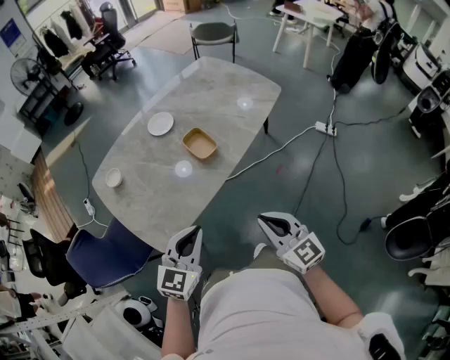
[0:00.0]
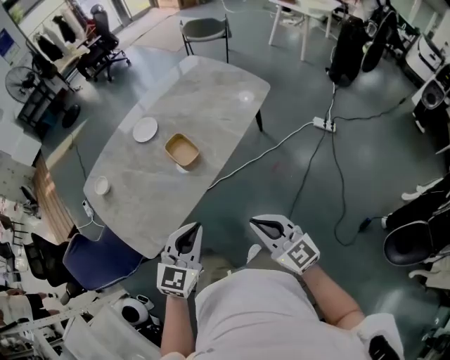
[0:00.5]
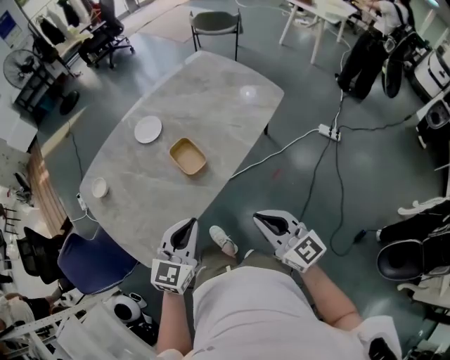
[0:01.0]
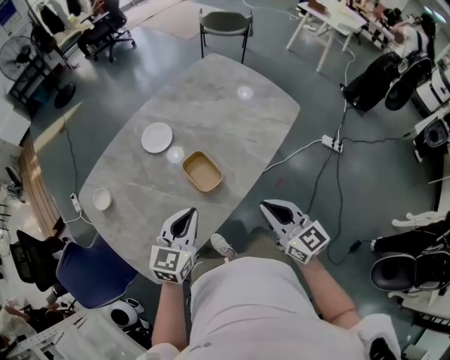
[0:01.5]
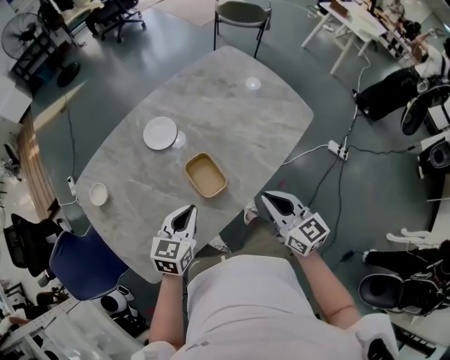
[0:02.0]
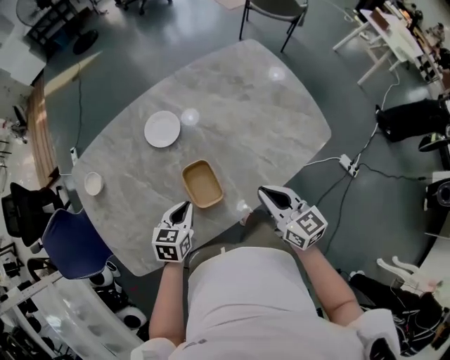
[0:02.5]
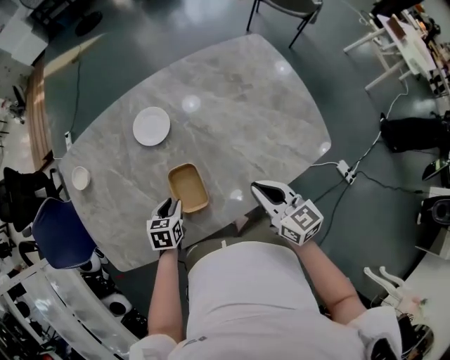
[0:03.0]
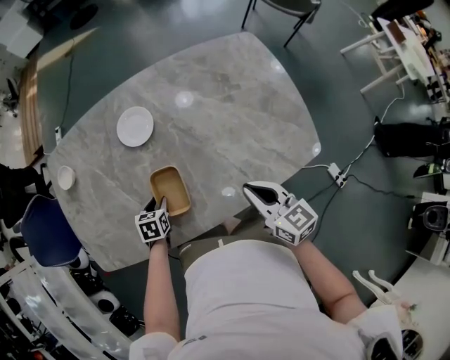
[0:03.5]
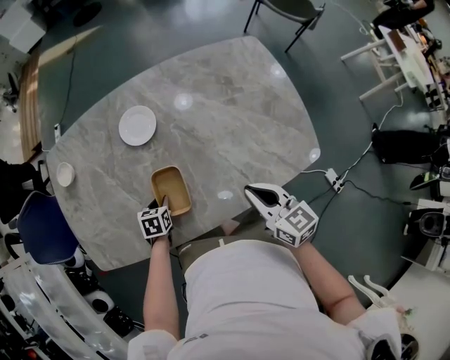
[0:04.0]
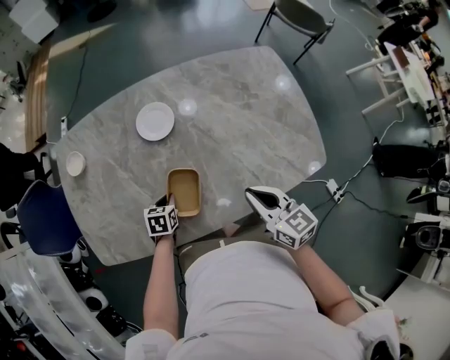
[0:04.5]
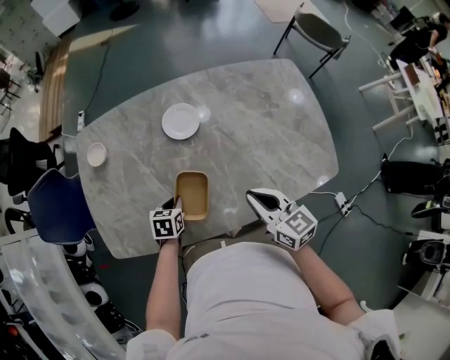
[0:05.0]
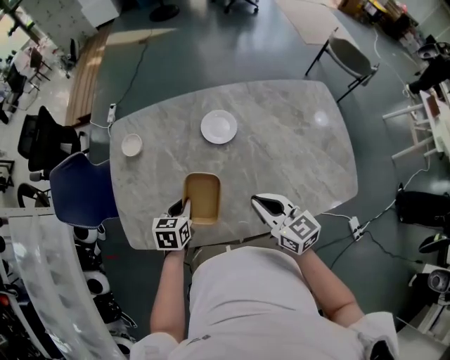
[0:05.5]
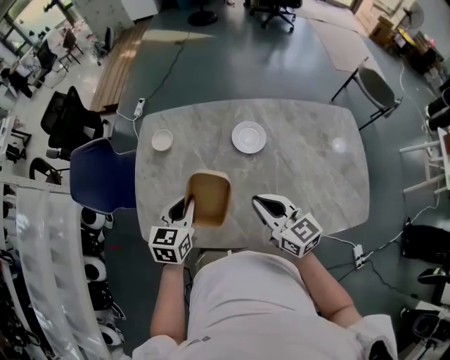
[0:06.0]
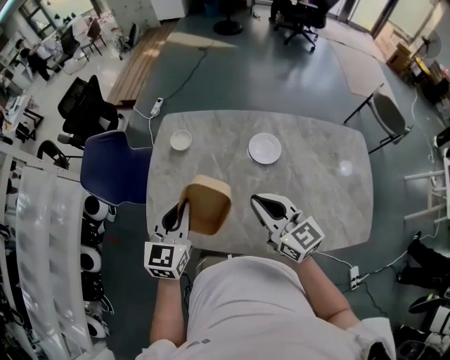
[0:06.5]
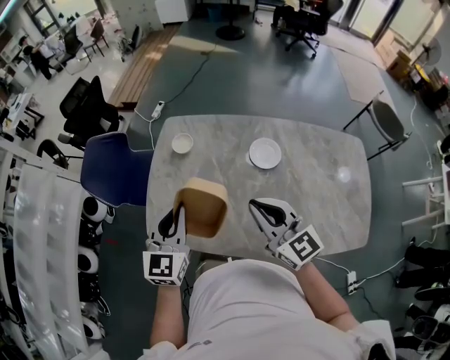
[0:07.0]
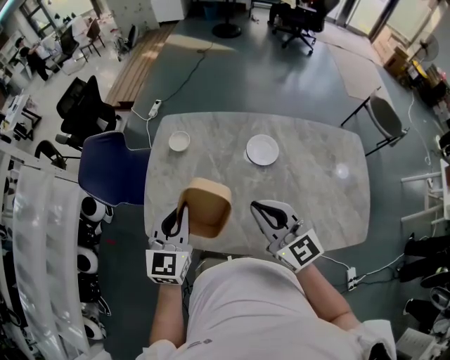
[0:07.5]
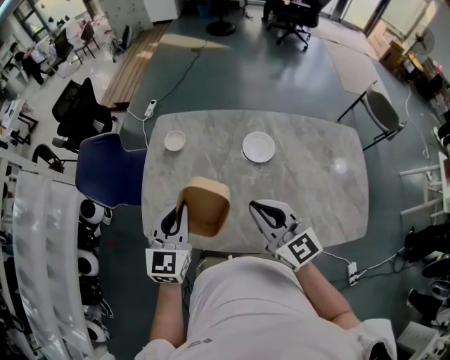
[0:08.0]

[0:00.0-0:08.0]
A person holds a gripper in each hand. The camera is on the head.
0.0 to 2.0 s: The two grippers go about 30 cm forward. The left gripper changes its angle by about 20 degrees.
2.0 to 4.0 s: The left gripper heads downward, covering roughly 25 cm, angles its fingers downward, by roughly 30 degrees, and opens its fingers. The right gripper moves roughly 20 cm, and changes its angle by roughly 30 degrees.
4.0 to 6.0 s: The left gripper goes about 30 cm upward and to the left, and tips its fingers upward by approximately 30 degrees. The right gripper heads to the left, covering roughly 25 cm, and swivels about 20 degrees.
6.0 to 8.0 s: Both grippers move upward and to the left, roughly 10 cm. The left gripper swivels approximately 20 degrees.

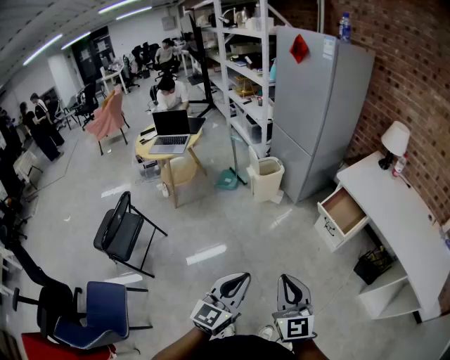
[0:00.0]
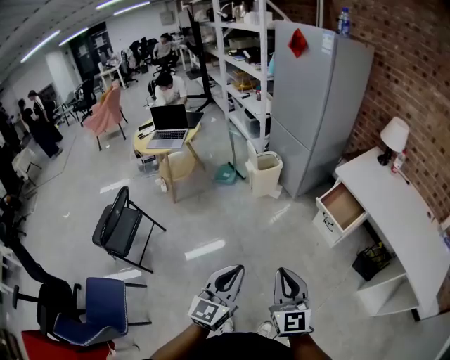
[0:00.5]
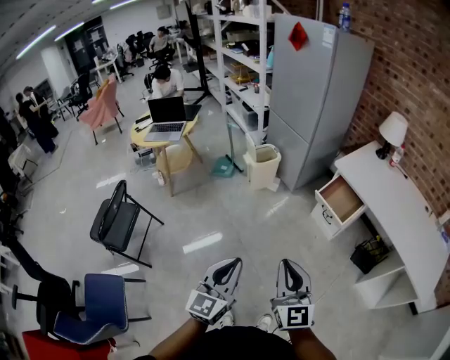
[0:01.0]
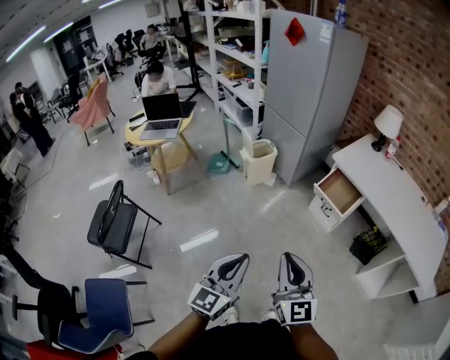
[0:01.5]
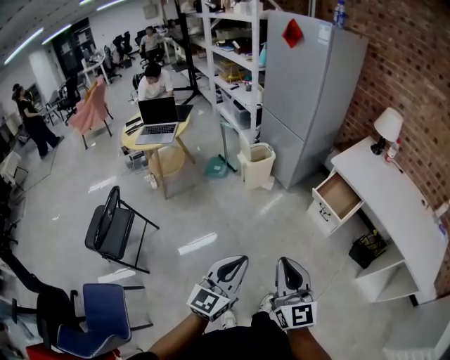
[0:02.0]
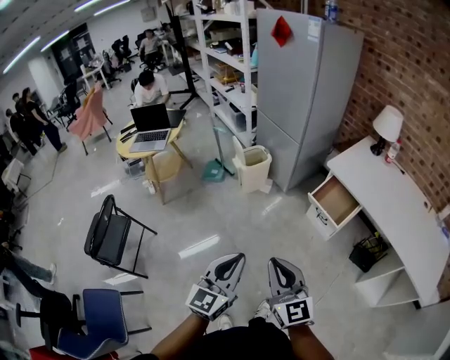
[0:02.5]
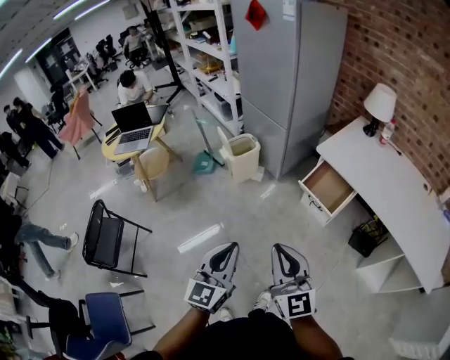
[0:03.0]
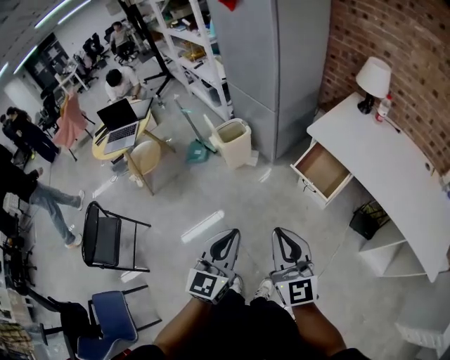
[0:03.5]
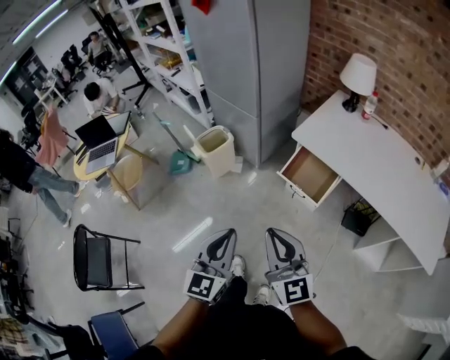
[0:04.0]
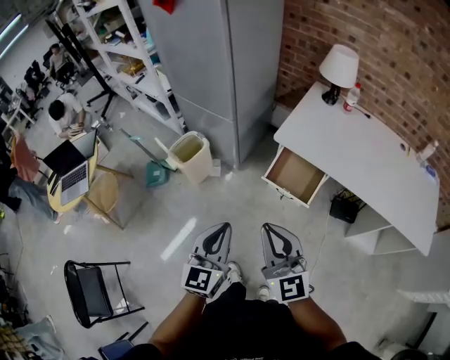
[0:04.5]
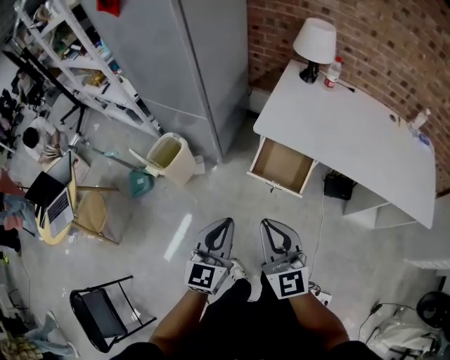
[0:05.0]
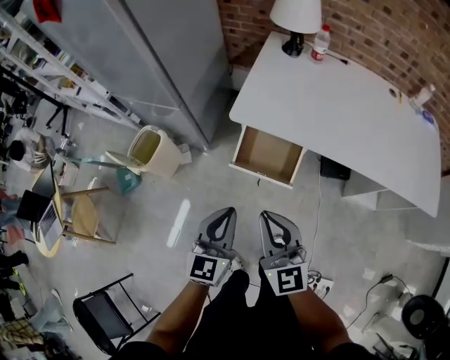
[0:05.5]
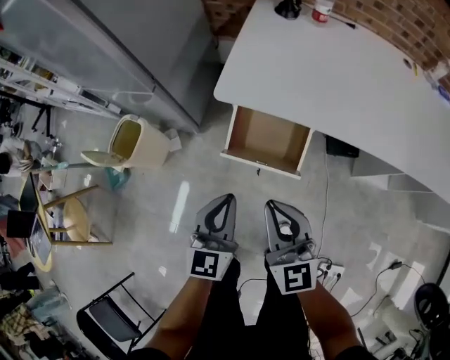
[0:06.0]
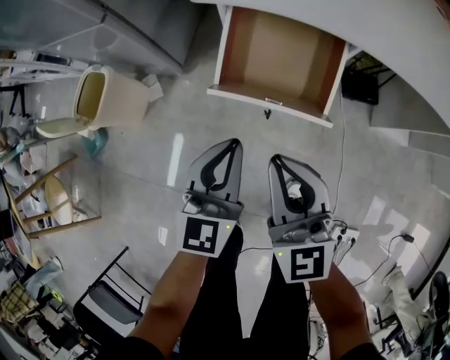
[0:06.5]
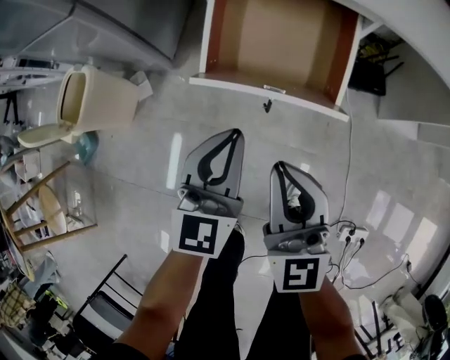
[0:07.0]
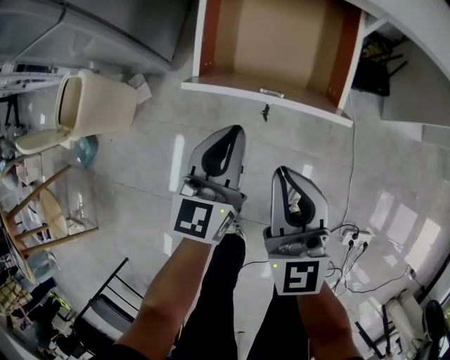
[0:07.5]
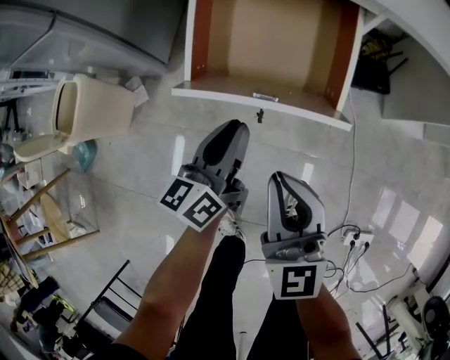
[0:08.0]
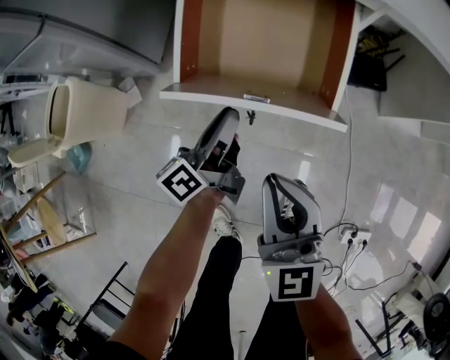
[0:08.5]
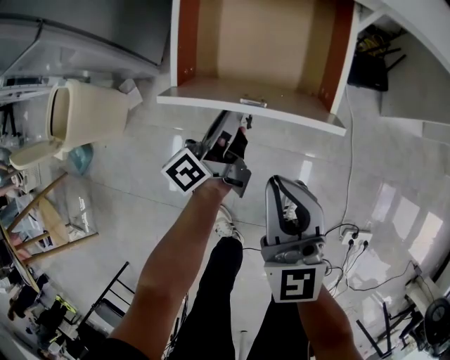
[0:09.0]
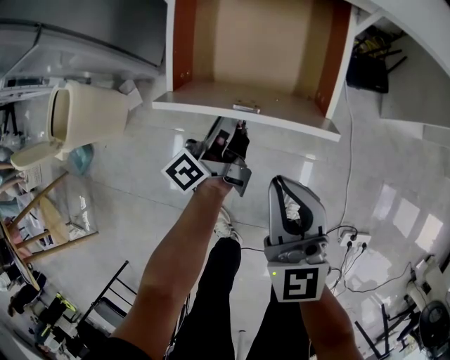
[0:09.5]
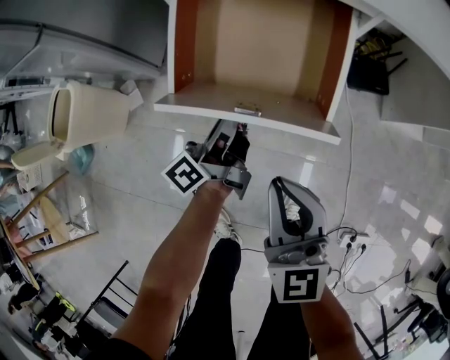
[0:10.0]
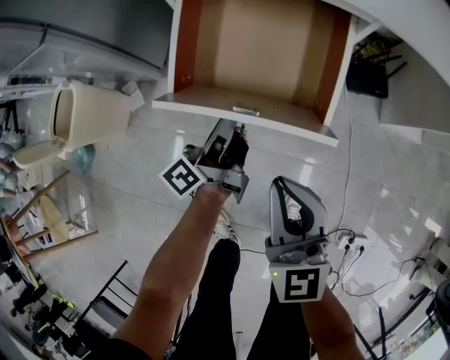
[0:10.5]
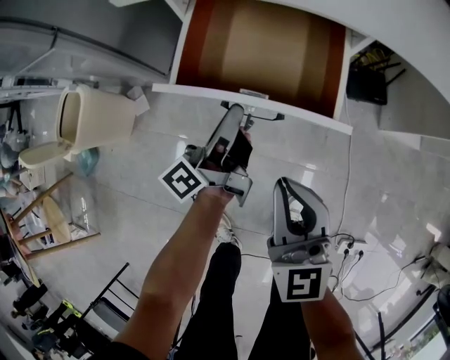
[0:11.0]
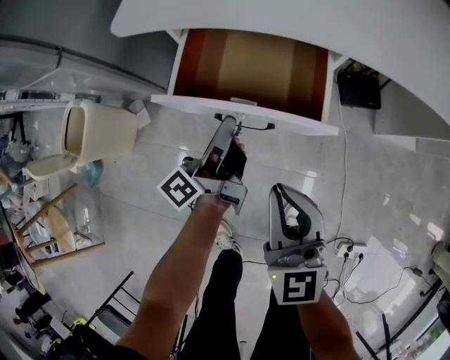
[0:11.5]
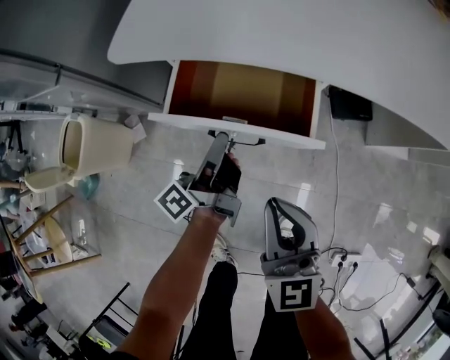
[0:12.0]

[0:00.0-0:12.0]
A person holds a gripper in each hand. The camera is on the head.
0.0 to 2.0 s: The left gripper shifts by approximately 5 cm.
2.0 to 4.0 s: The grippers both shift forward and to the right by about 25 cm.
4.0 to 6.0 s: Both grippers move forward and downward, some 35 cm. The left gripper swivels about 30 degrees. Meanwhile the right gripper swivels some 30 degrees.
6.0 to 8.0 s: Both grippers travel together downward, some 25 cm. The left gripper rotates approximately 40 degrees.
8.0 to 10.0 s: The left gripper is displaced forward by approximately 5 cm, and swivels some 40 degrees.
10.0 to 12.0 s: The left gripper heads upward, covering about 5 cm; the right gripper ends up about 5 cm from where it was.

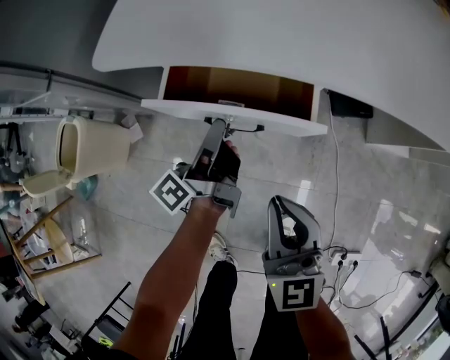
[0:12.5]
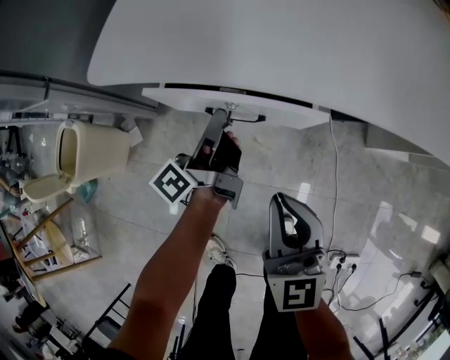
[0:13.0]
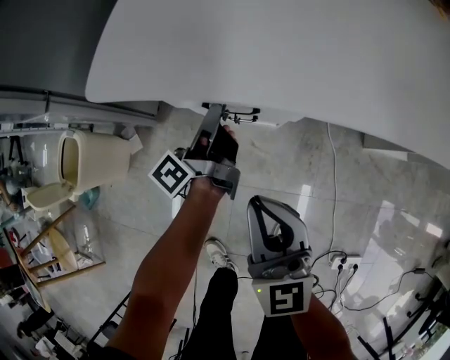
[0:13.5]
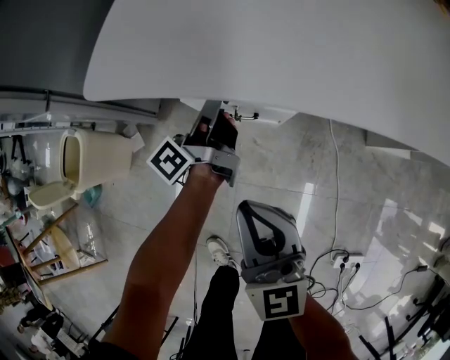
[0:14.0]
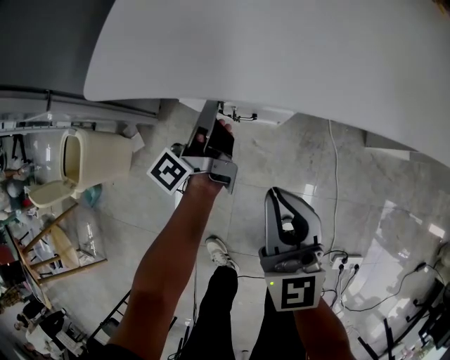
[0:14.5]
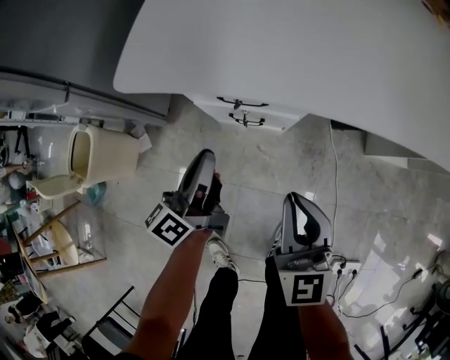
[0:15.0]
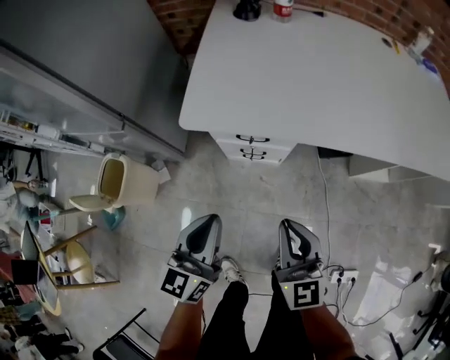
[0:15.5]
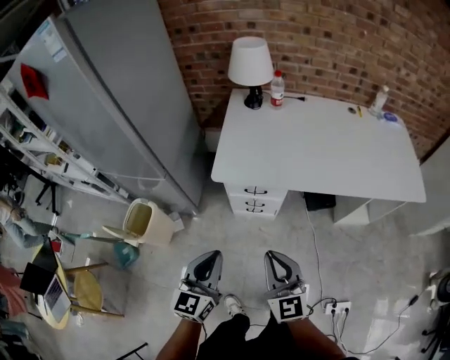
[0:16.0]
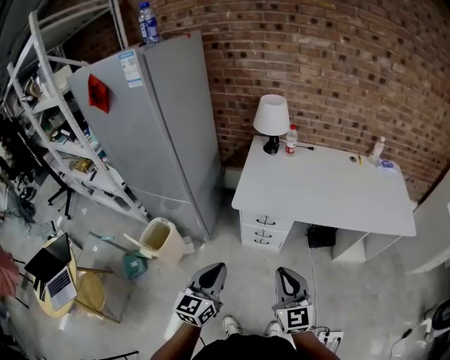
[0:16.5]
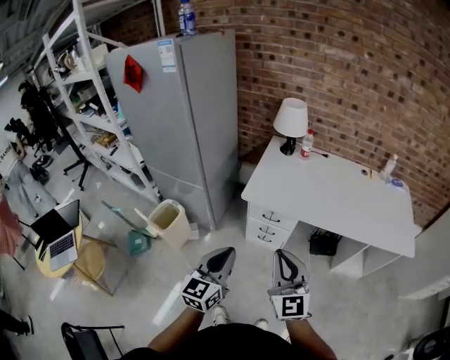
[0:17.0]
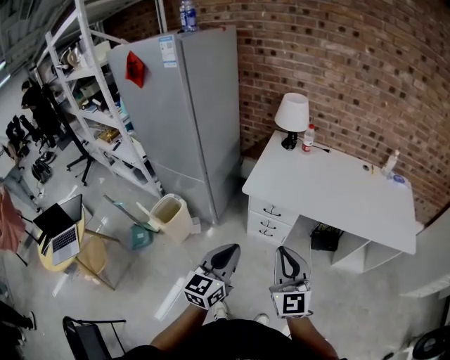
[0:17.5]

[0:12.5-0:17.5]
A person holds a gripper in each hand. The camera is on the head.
12.5 to 15.0 s: The right gripper shifts by approximately 5 cm; the left gripper shifts roughly 5 cm upward, moves some 10 cm forward and comes back, and rotates some 30 degrees.
15.0 to 17.5 s: Both grippers move upward and backward, about 50 cm. The right gripper swivels about 20 degrees. Meanwhile the left gripper twists some 40 degrees clockwise, seen from behind.

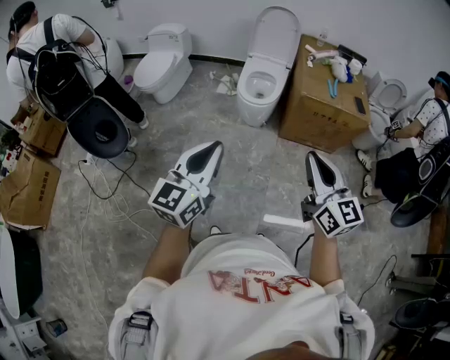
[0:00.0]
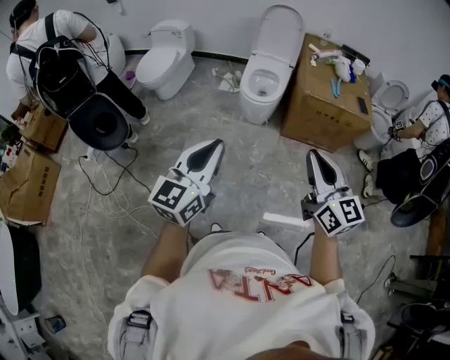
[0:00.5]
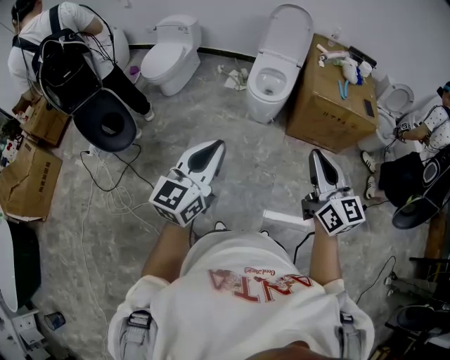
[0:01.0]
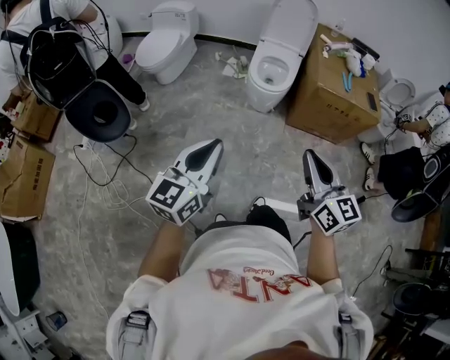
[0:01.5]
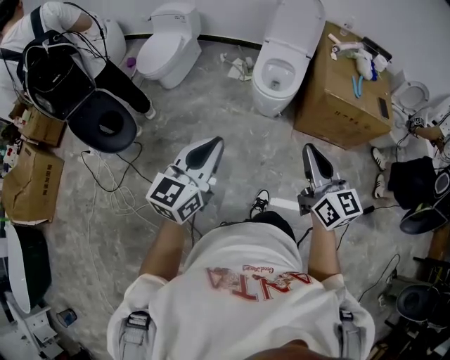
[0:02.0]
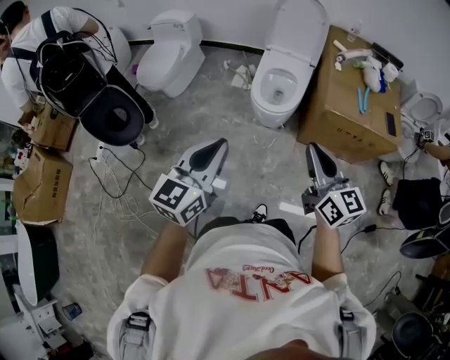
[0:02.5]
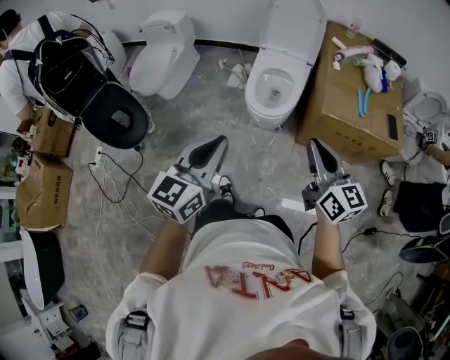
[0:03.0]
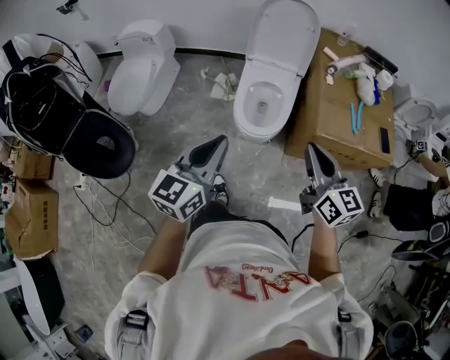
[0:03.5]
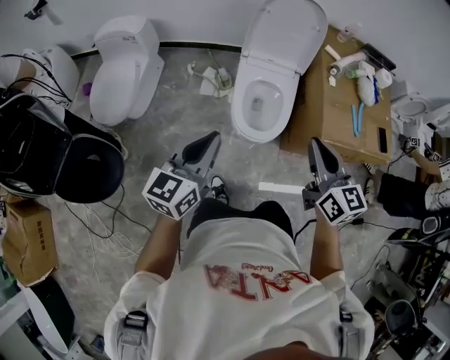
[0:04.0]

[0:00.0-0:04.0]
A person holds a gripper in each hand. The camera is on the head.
0.0 to 2.0 s: The left gripper moves forward and to the left, approximately 15 cm. The right gripper is displaced forward, to the left and downward by approximately 15 cm.
2.0 to 4.0 s: The two grippers travel together, forward, about 50 cm.
